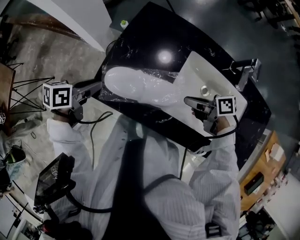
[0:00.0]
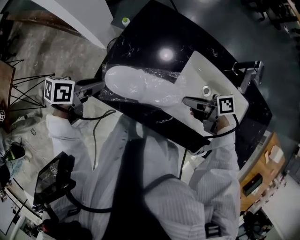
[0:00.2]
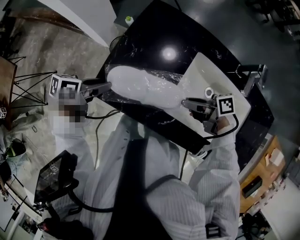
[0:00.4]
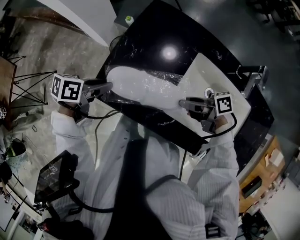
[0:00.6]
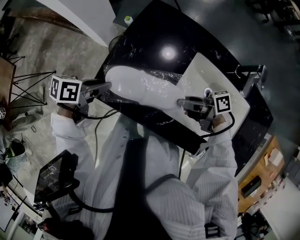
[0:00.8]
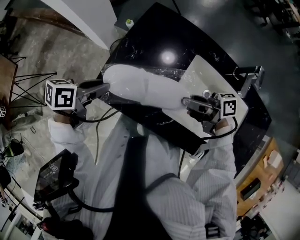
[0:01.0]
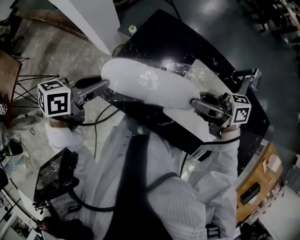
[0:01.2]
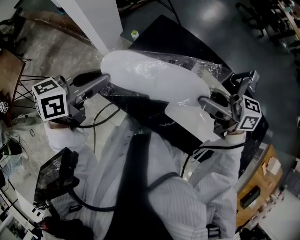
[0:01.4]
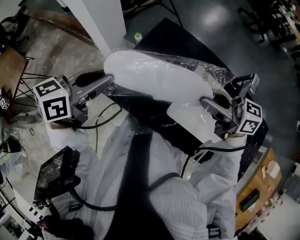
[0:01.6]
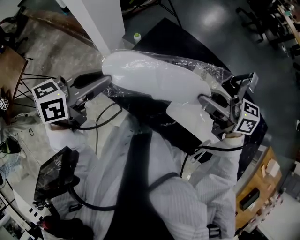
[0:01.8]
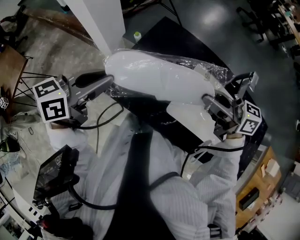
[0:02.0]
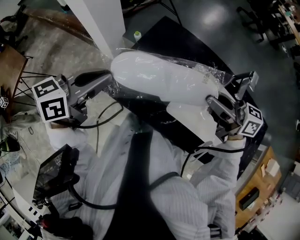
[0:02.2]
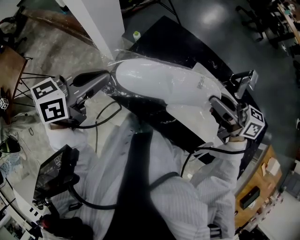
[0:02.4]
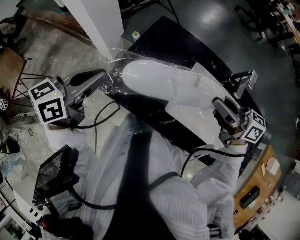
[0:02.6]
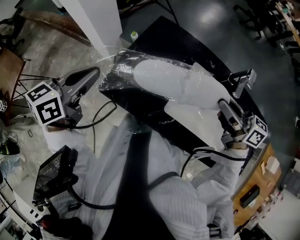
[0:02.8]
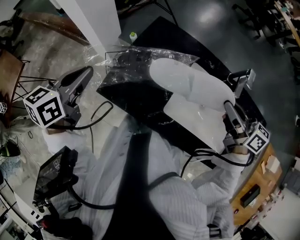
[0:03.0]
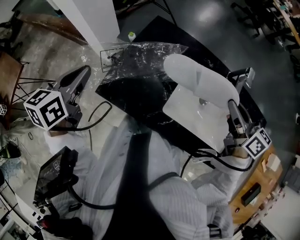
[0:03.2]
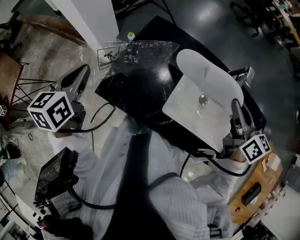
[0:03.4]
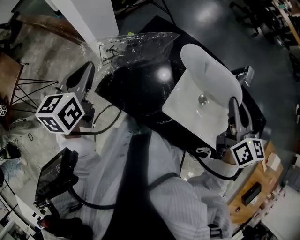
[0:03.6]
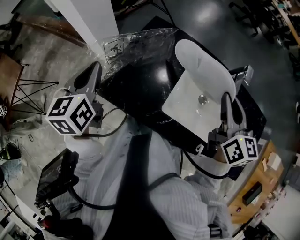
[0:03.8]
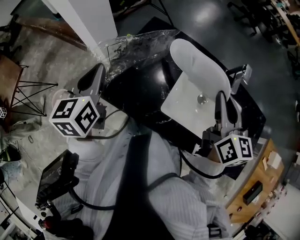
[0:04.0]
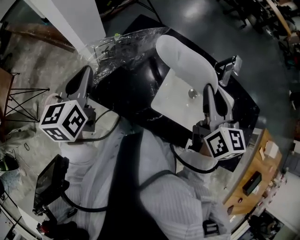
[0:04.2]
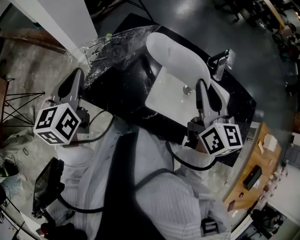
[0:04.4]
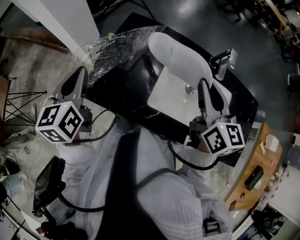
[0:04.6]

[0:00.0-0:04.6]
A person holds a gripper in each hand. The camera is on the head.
0:00.0 to 0:01.6: The grippers both shift upward by approximately 20 cm. The left gripper turns by roughly 30 degrees, while the right gripper swivels some 40 degrees.
0:01.6 to 0:03.0: The right gripper shifts approximately 10 cm to the right, and rotates roughly 30 degrees.
0:03.0 to 0:04.6: The right gripper rotates approximately 40 degrees.

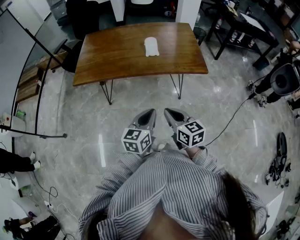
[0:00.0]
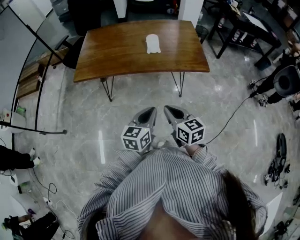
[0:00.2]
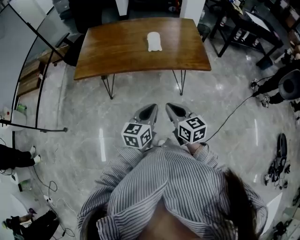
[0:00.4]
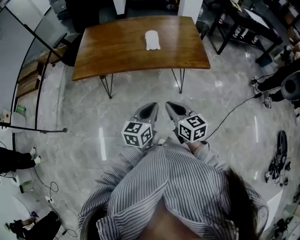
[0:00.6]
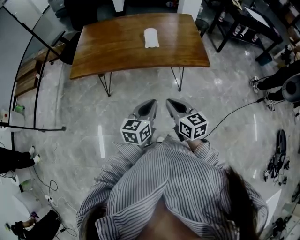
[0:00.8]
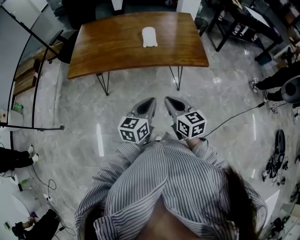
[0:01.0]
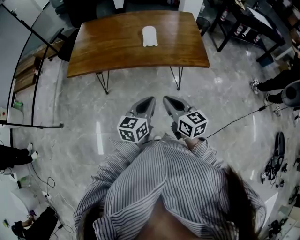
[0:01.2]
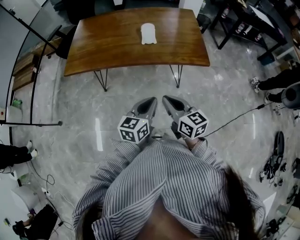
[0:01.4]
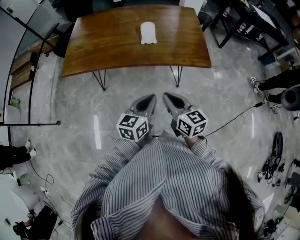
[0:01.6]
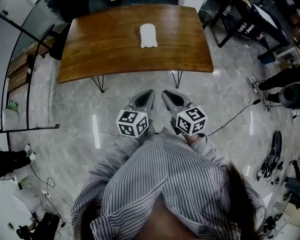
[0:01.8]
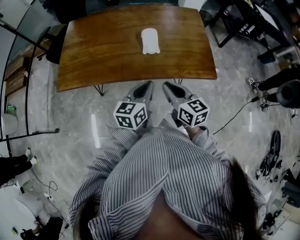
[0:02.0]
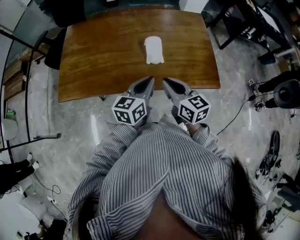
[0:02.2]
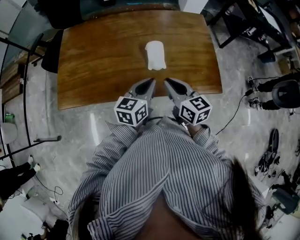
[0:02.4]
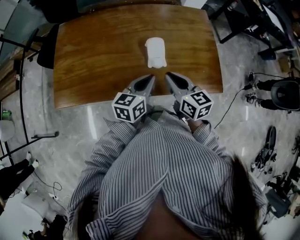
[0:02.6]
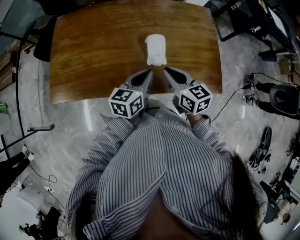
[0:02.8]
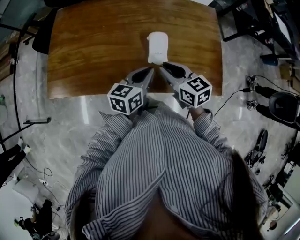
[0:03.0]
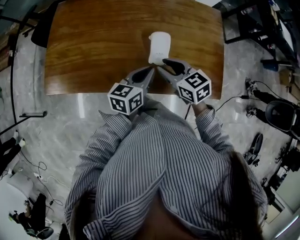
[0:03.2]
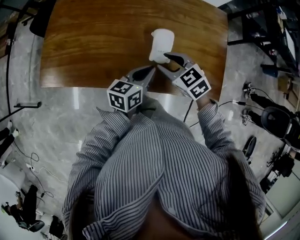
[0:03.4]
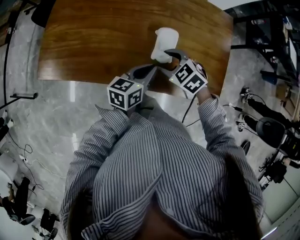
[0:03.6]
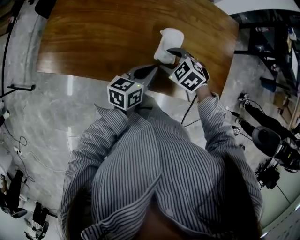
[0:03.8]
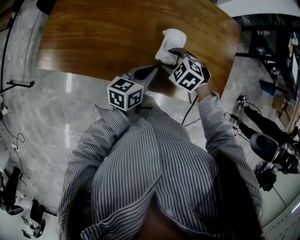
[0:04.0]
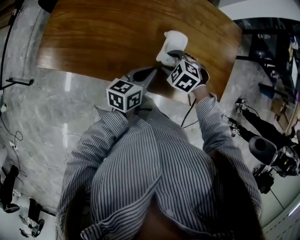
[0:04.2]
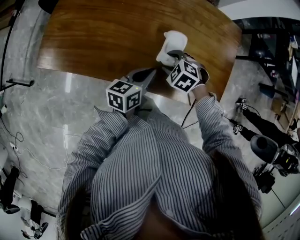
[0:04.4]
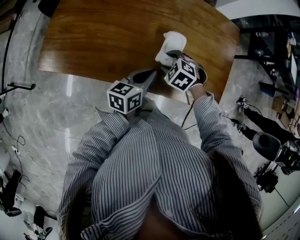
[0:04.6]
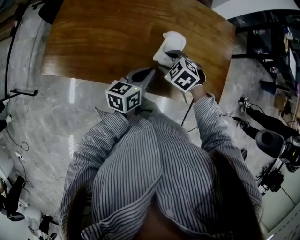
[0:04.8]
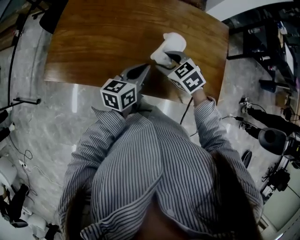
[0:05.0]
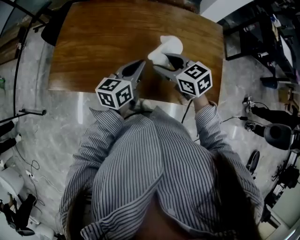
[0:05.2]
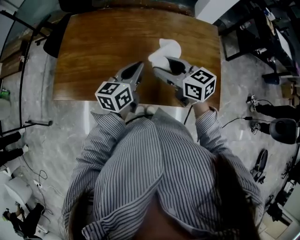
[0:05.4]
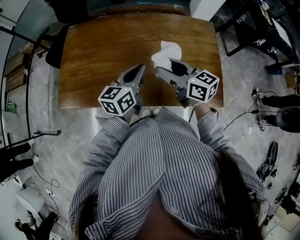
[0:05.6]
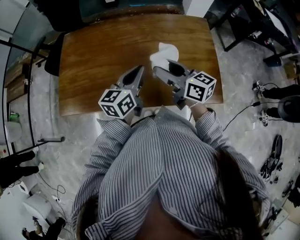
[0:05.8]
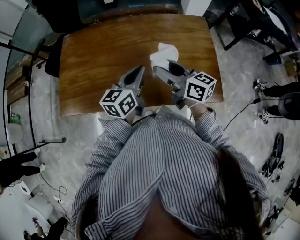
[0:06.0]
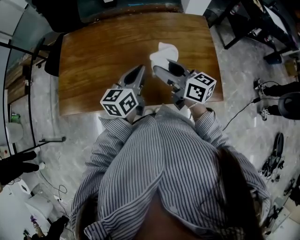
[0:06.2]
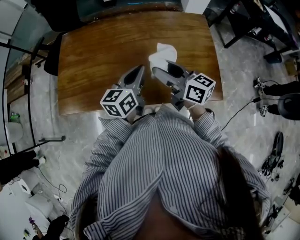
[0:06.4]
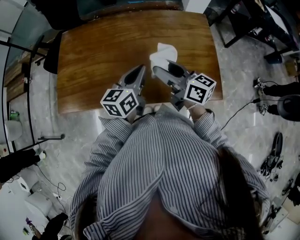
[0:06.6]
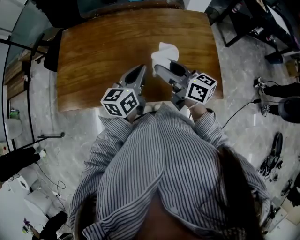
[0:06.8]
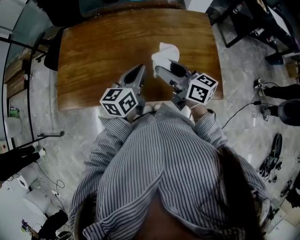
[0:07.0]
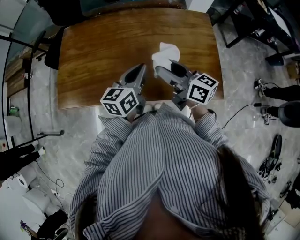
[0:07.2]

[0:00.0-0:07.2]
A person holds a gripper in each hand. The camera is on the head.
0:00.0 to 0:01.4: Both grippers travel together forward, some 5 cm.
0:01.4 to 0:02.8: Both grippers travel together forward, some 35 cm.
0:02.8 to 0:04.4: The right gripper is displaced downward by roughly 15 cm, points its fingers approximately 50 degrees further downward, and opens. Meanwhile the left gripper moves downward, approximately 5 cm.
0:04.4 to 0:05.8: The left gripper is displaced upward by approximately 15 cm, and swivels approximately 20 degrees. The right gripper heads upward, covering approximately 20 cm, and tips its fingers upward by roughly 70 degrees.
0:05.8 to 0:07.2: The grippers move only a little.

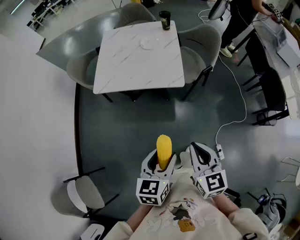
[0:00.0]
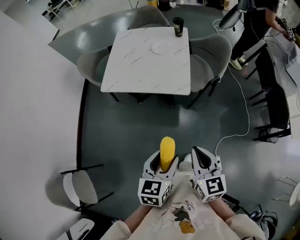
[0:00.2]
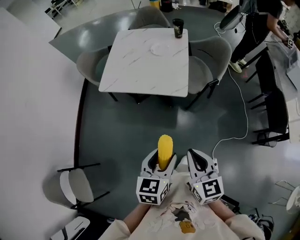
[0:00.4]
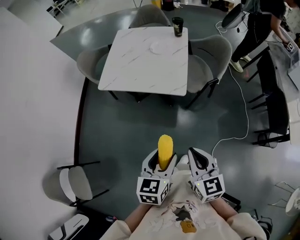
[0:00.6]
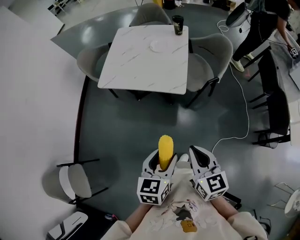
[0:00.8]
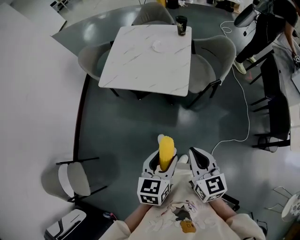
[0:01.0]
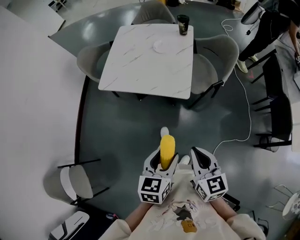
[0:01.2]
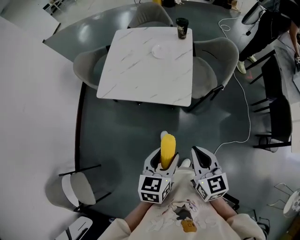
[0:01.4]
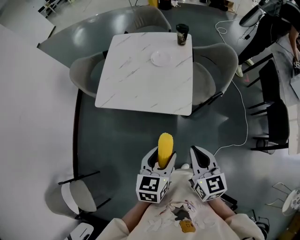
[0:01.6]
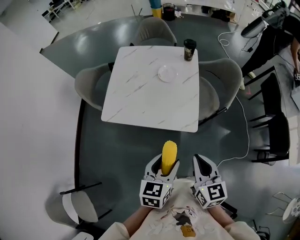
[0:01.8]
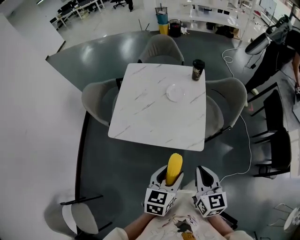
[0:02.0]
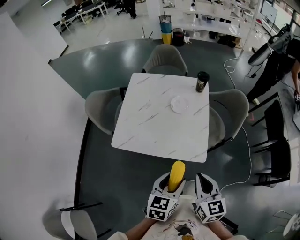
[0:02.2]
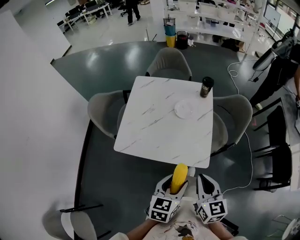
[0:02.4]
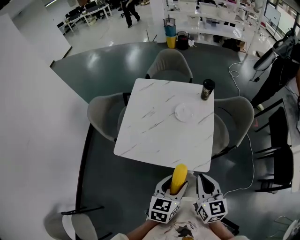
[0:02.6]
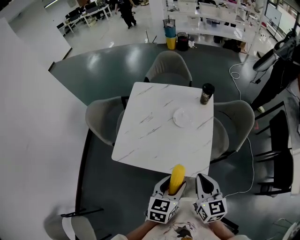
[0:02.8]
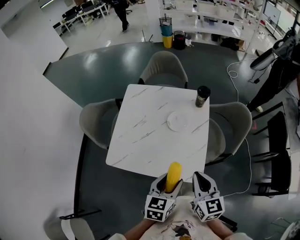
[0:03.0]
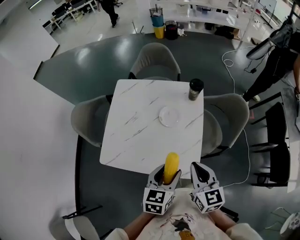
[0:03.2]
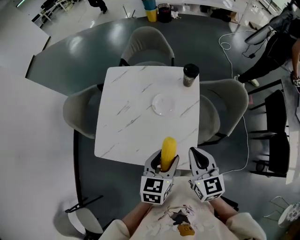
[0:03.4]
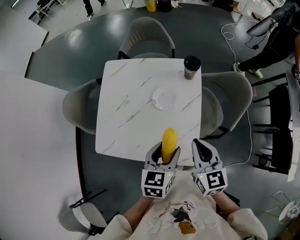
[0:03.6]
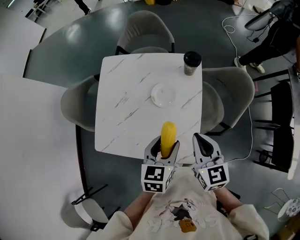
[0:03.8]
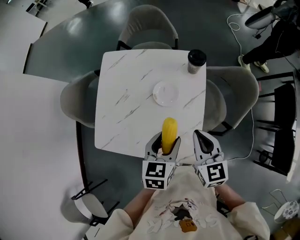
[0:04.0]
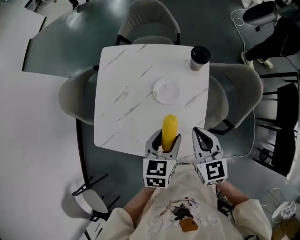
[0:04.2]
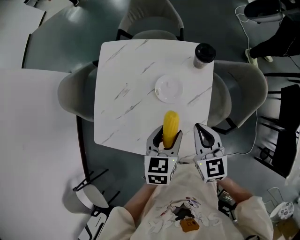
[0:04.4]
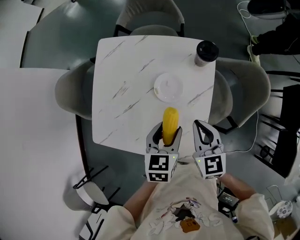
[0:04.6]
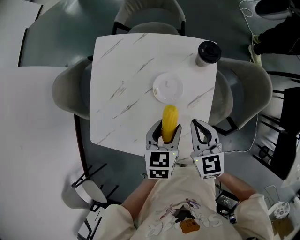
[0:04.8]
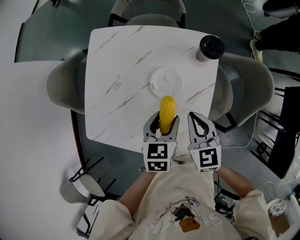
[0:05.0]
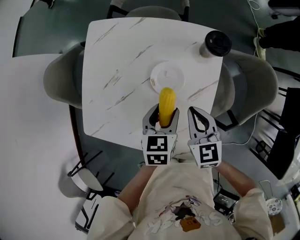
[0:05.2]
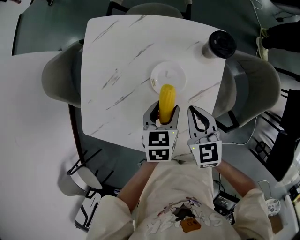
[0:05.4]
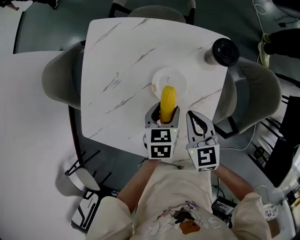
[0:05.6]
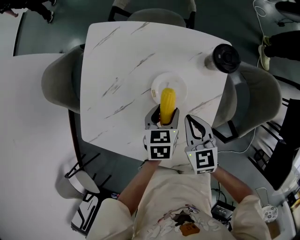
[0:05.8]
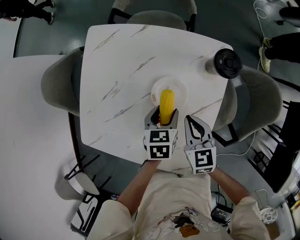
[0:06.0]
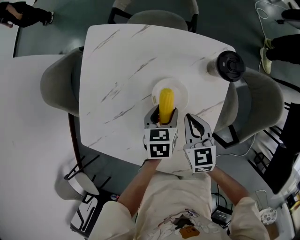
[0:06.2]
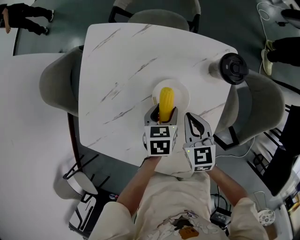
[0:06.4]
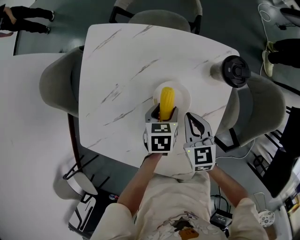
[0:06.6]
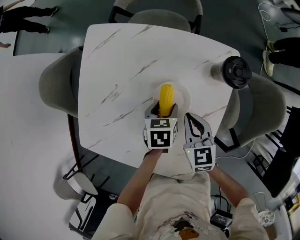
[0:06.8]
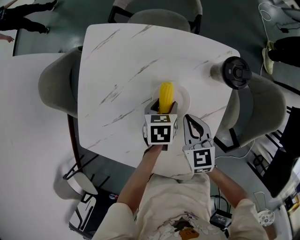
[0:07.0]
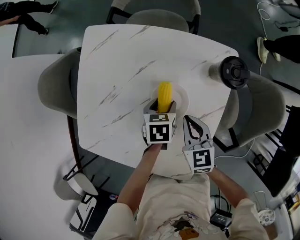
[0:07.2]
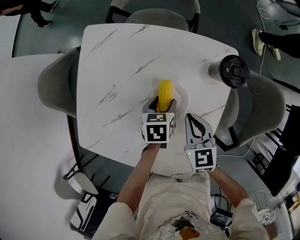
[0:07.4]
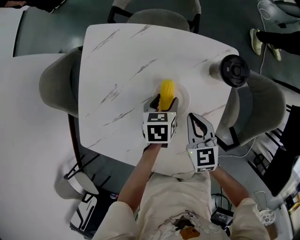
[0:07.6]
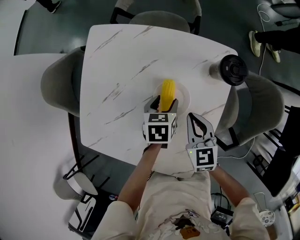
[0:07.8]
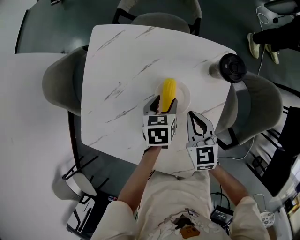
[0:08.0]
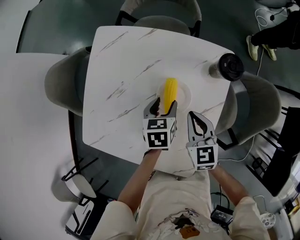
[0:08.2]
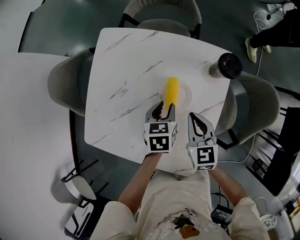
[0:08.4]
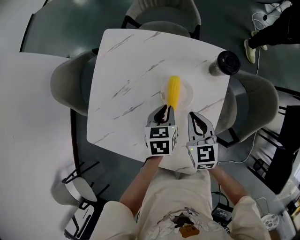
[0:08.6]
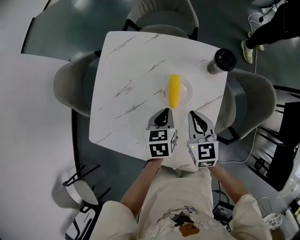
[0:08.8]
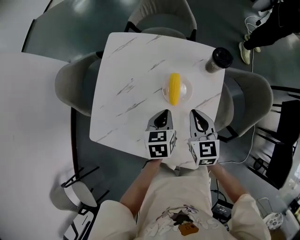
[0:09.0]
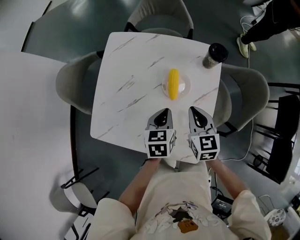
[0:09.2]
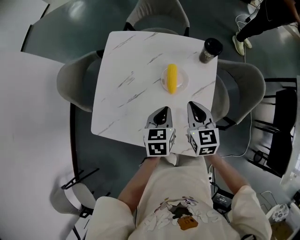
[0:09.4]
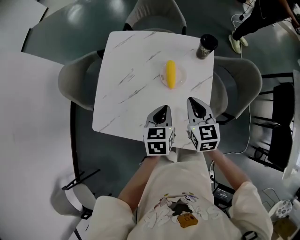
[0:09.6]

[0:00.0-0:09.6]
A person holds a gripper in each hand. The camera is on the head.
0:00.0 to 0:01.6: The two grippers go roughly 15 cm forward.
0:01.6 to 0:03.2: The two grippers go some 30 cm forward.
0:03.2 to 0:04.8: The grippers both shift forward and downward by about 25 cm.
0:04.8 to 0:06.4: The two grippers go some 15 cm downward and forward.
0:06.4 to 0:08.0: The grippers stay close to where they were, moving slightly.
0:08.0 to 0:09.6: The right gripper travels upward and backward by about 15 cm. Meanwhile the left gripper heads backward and upward, covering about 25 cm, and closes.

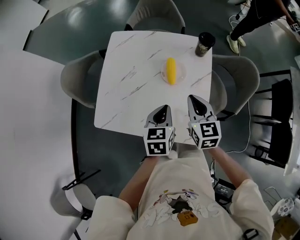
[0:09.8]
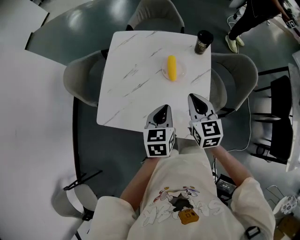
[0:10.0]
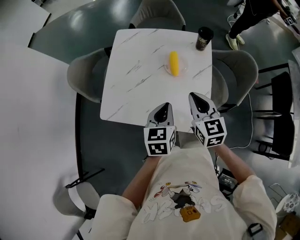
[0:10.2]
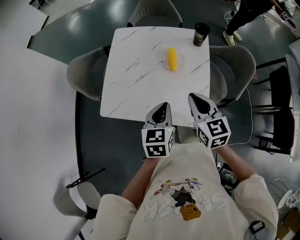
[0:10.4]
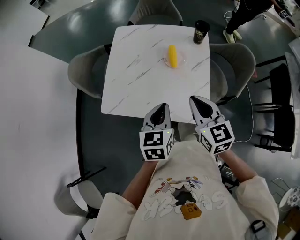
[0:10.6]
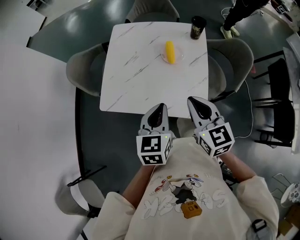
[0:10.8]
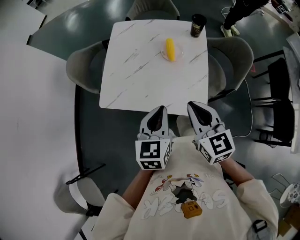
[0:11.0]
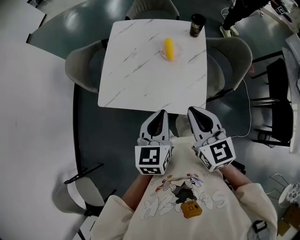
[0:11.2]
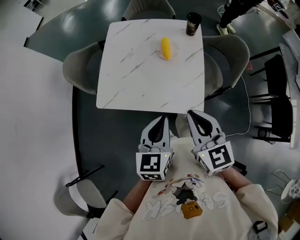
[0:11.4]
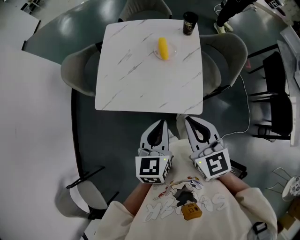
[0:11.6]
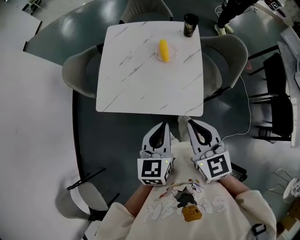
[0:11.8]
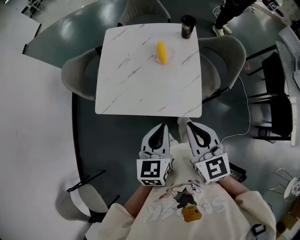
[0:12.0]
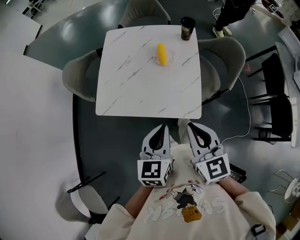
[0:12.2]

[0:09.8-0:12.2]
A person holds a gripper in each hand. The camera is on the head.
0:09.8 to 0:11.0: The two grippers go some 20 cm backward and upward.
0:11.0 to 0:12.2: The grippers both shift backward by some 5 cm.
